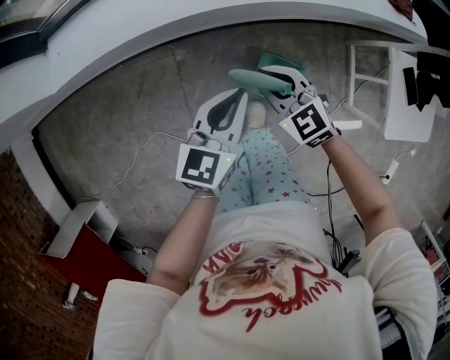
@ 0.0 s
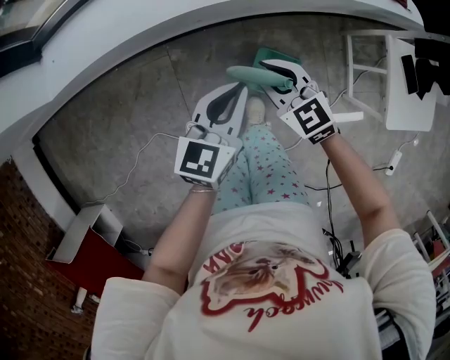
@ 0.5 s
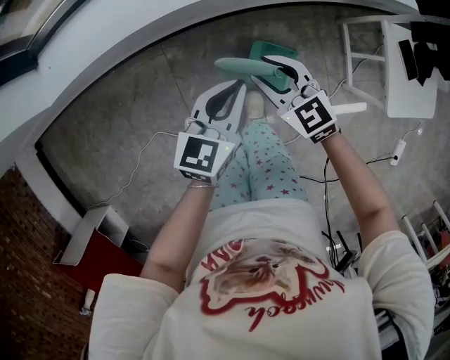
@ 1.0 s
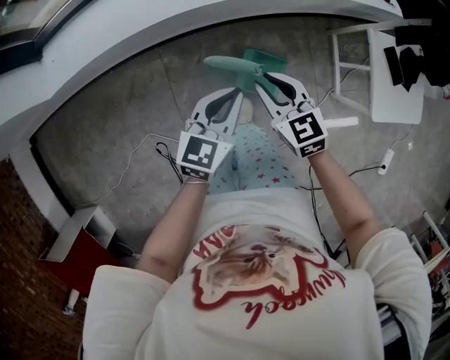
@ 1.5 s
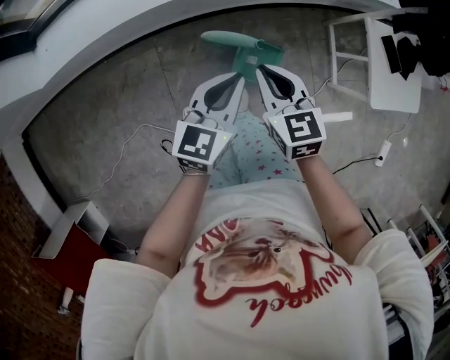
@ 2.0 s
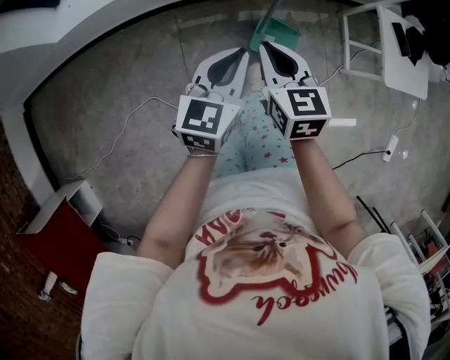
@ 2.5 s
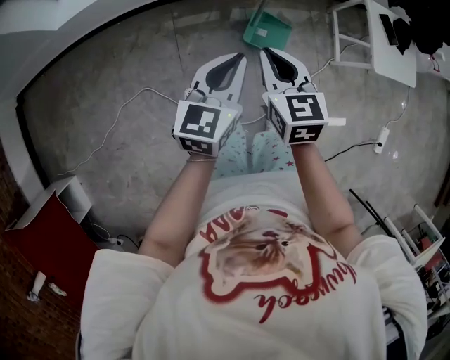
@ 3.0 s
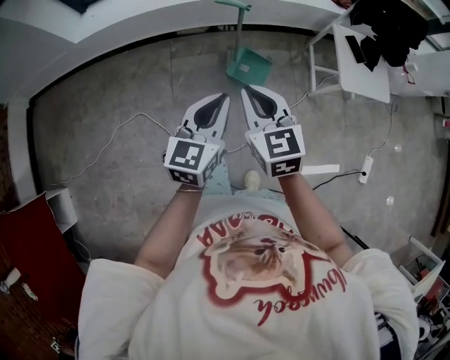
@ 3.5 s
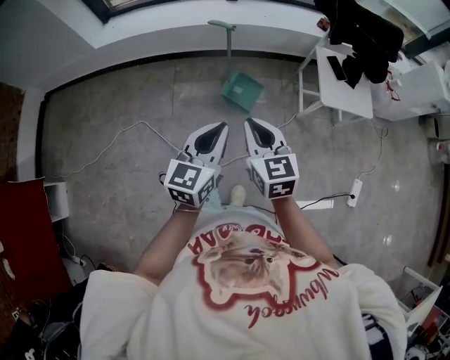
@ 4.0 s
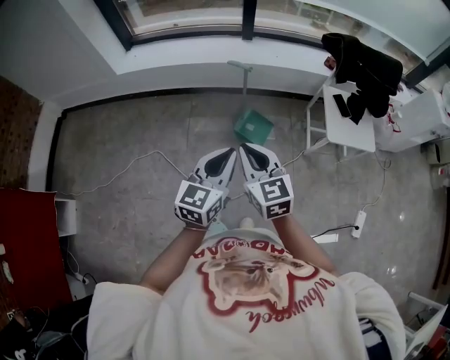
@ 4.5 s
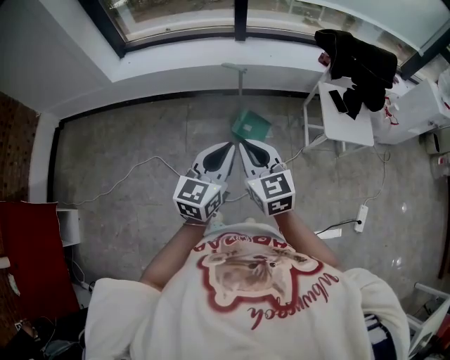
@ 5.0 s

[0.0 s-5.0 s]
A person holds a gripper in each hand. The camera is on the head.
0.0 to 2.5 s: The left gripper travels backward by about 20 cm; the right gripper goes approximately 20 cm backward and upward, and turns by about 40 degrees.
2.5 to 5.0 s: The two grippers go approximately 35 cm backward and upward. The right gripper turns by approximately 20 degrees.

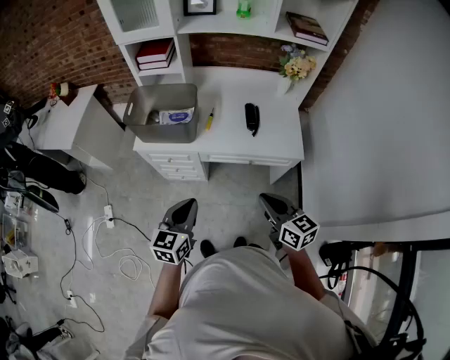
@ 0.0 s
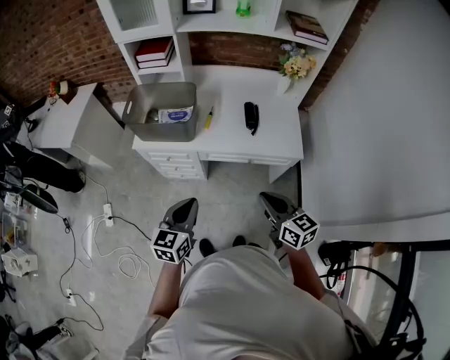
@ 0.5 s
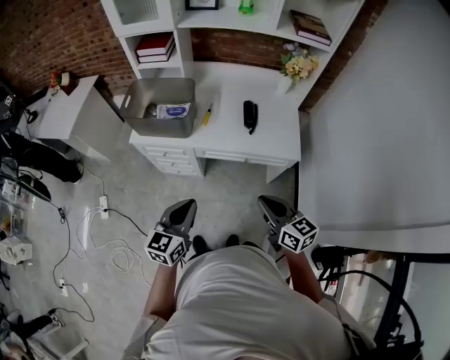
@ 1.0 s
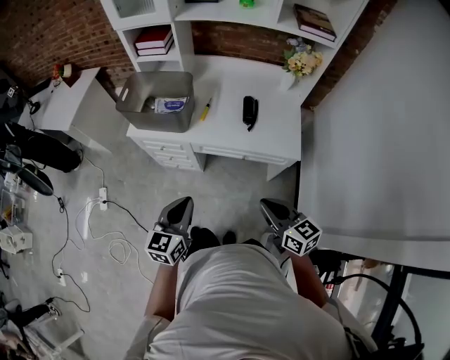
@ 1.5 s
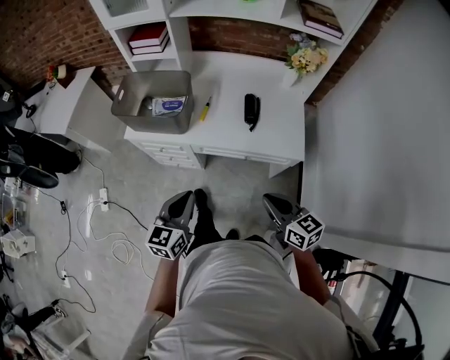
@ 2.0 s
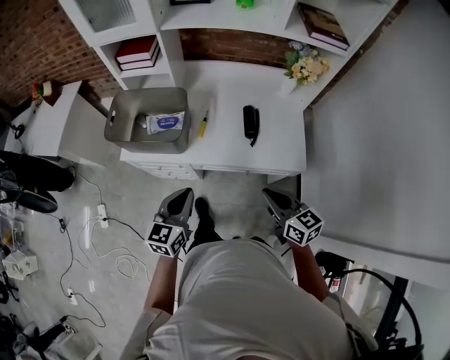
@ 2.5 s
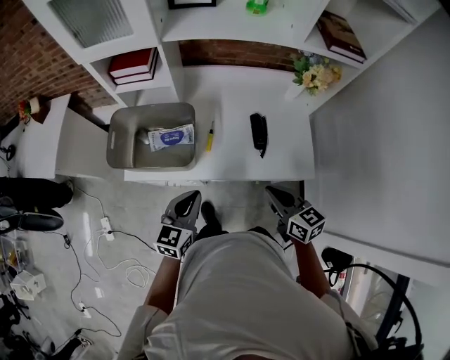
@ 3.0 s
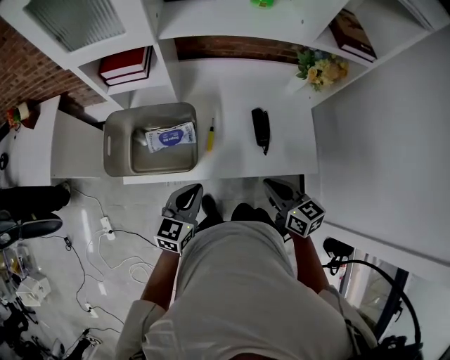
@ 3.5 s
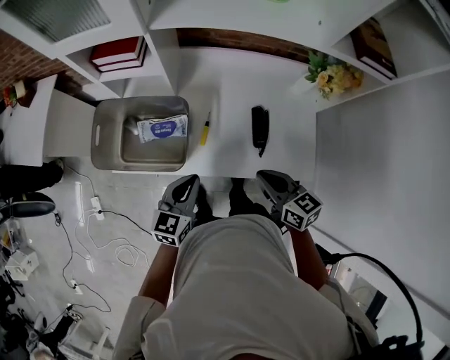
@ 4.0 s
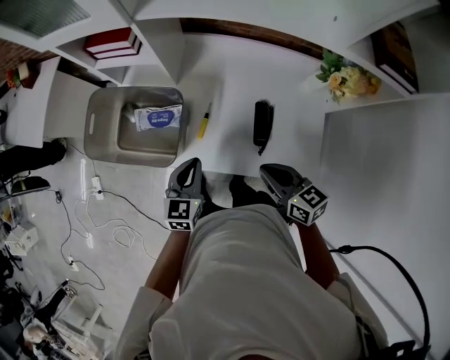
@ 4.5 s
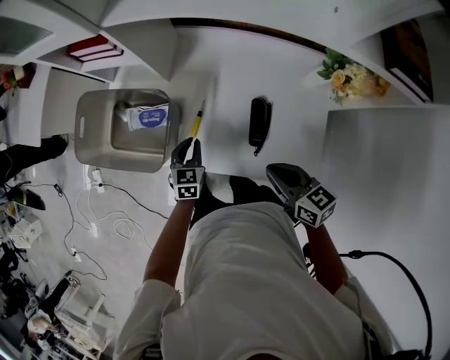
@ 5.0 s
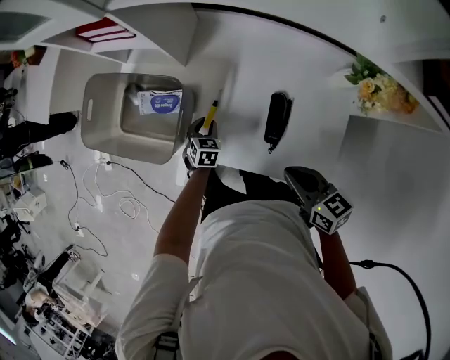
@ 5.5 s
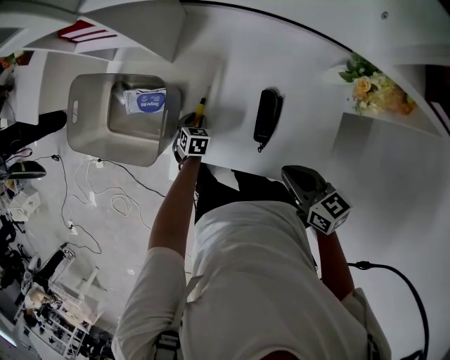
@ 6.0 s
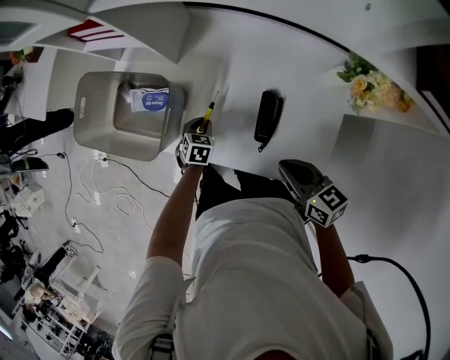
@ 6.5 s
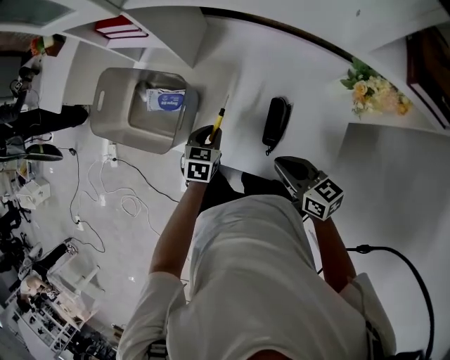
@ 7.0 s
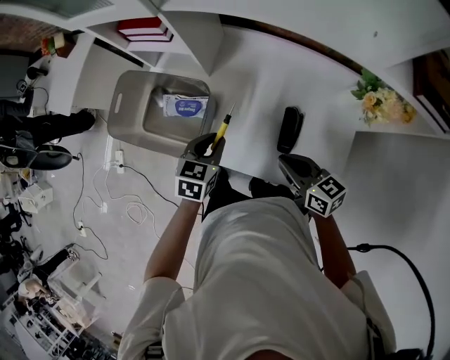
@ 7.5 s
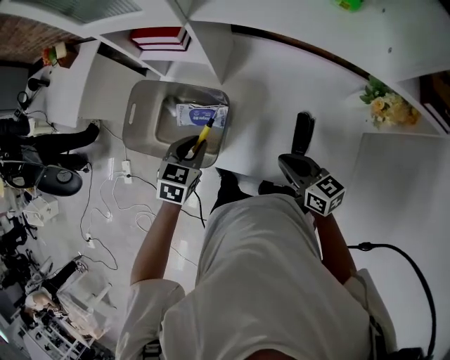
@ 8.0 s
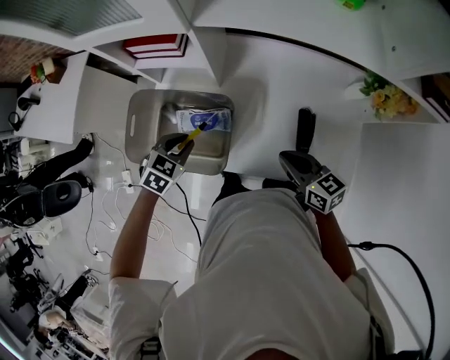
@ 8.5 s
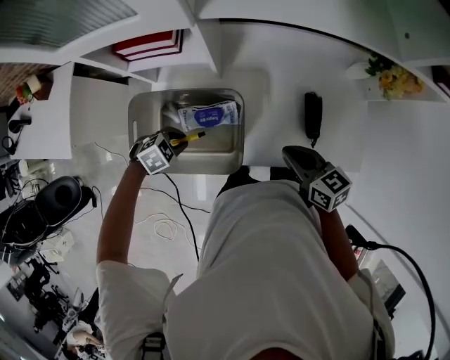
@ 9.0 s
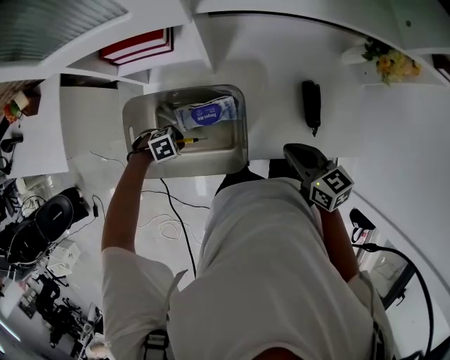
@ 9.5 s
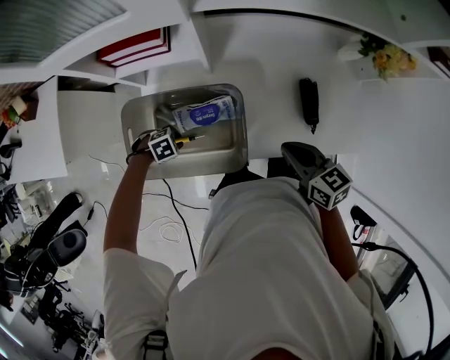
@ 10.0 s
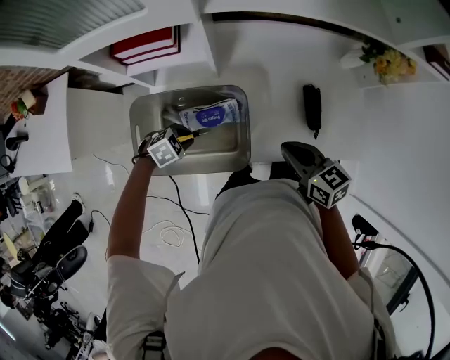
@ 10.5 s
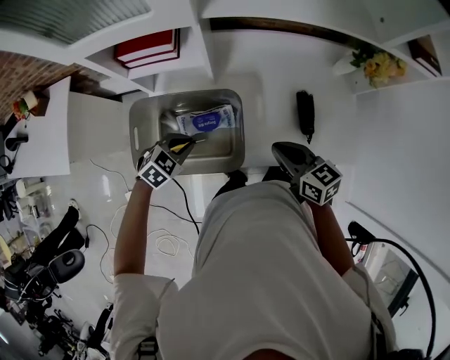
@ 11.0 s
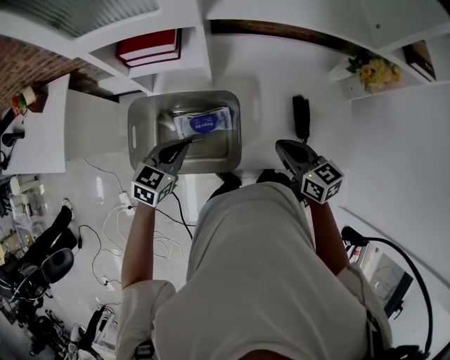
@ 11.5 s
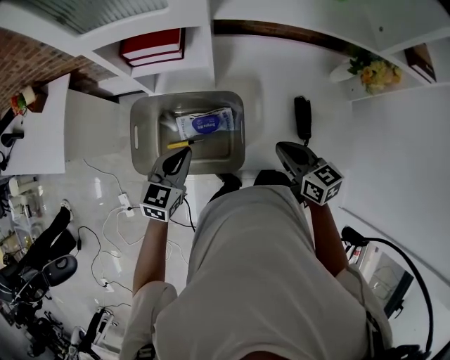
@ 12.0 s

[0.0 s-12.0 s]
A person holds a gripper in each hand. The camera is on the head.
0.0 to 2.0 s: Both grippers move to the right, some 5 cm.
2.0 to 4.0 s: The grippers both shift forward by about 30 cm.
4.0 to 6.0 s: The left gripper is displaced downward and forward by some 35 cm, tips its fingers downward by approximately 40 degrees, and opens. The right gripper goes some 15 cm to the right and downward.
6.0 to 8.0 s: The left gripper shifts about 30 cm upward and to the left, and rotates some 20 degrees, while the right gripper is displaced to the left and forward by approximately 15 cm.
8.0 to 10.0 s: The left gripper shifts roughly 25 cm downward, and rotates some 80 degrees. Meanwhile the right gripper moves about 10 cm, and changes its angle by some 20 degrees.
10.0 to 12.0 s: The left gripper is displaced upward by approximately 25 cm, and tilts its fingers roughly 40 degrees upward.

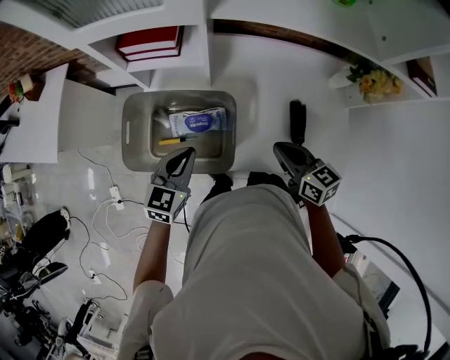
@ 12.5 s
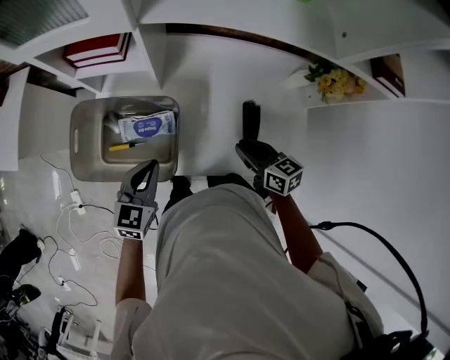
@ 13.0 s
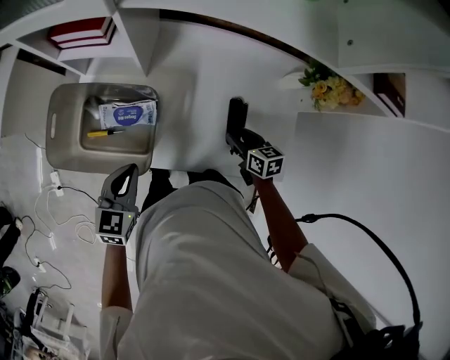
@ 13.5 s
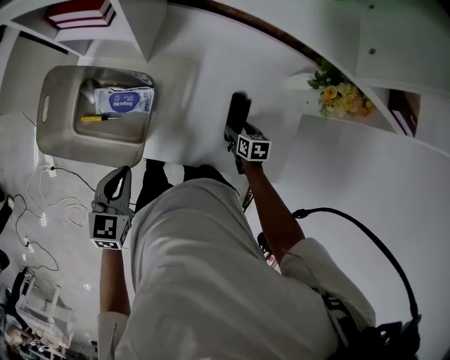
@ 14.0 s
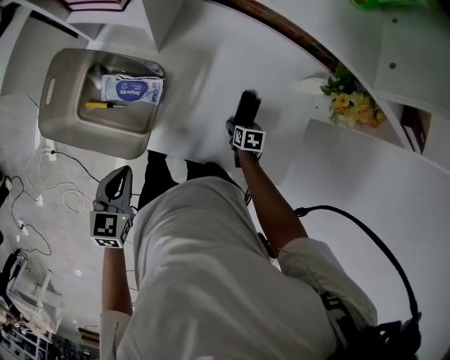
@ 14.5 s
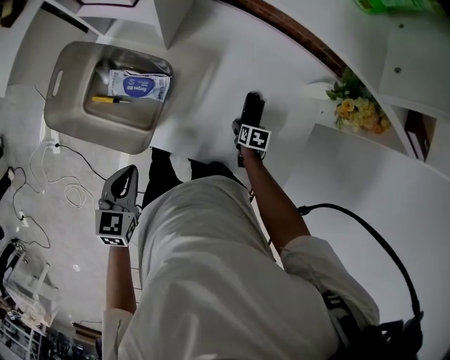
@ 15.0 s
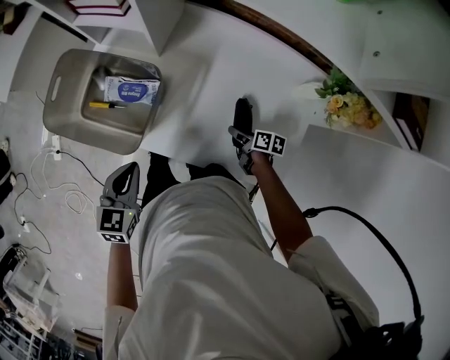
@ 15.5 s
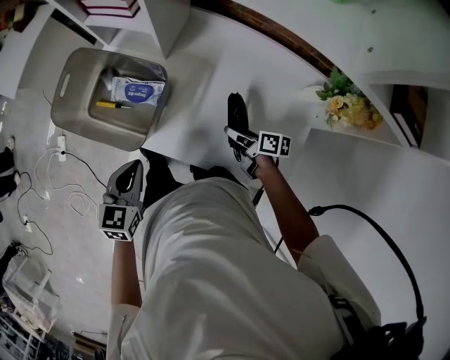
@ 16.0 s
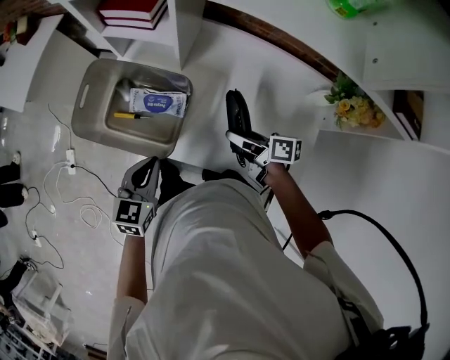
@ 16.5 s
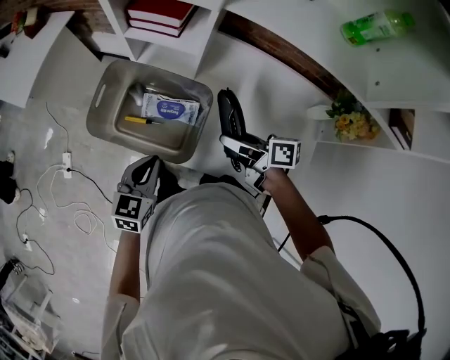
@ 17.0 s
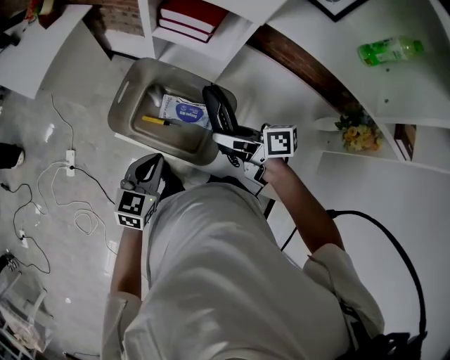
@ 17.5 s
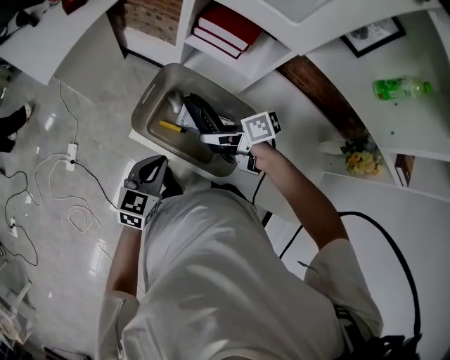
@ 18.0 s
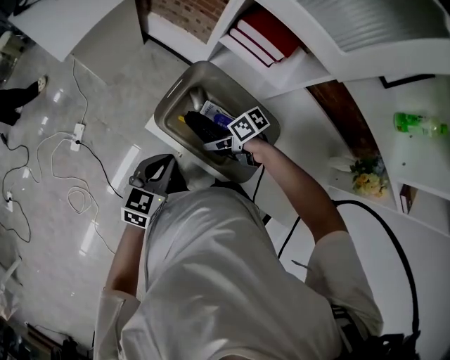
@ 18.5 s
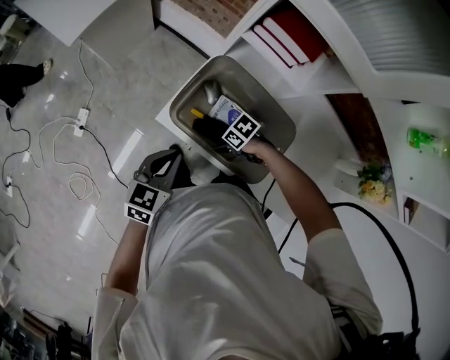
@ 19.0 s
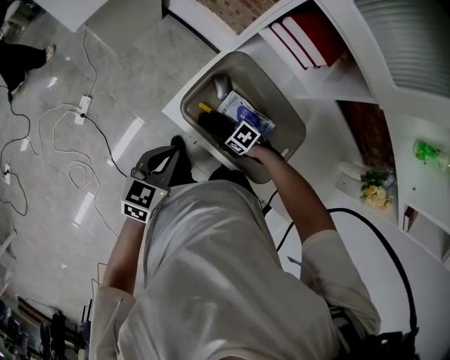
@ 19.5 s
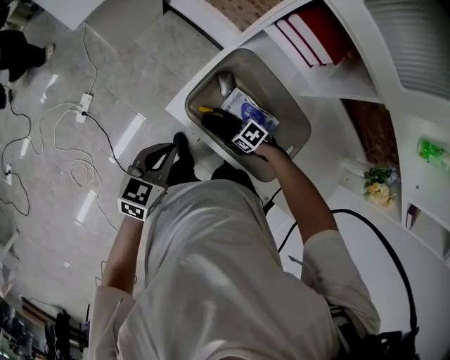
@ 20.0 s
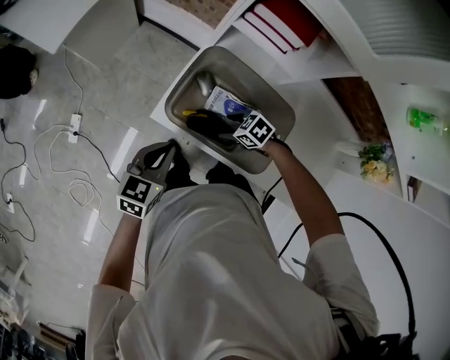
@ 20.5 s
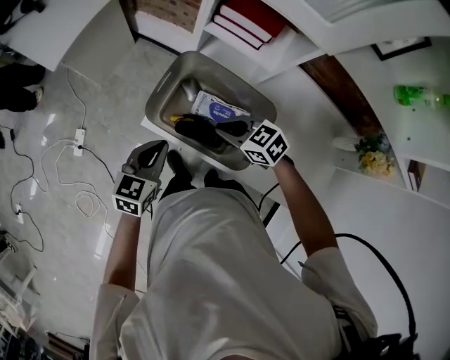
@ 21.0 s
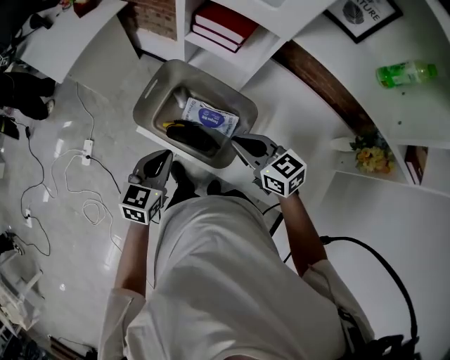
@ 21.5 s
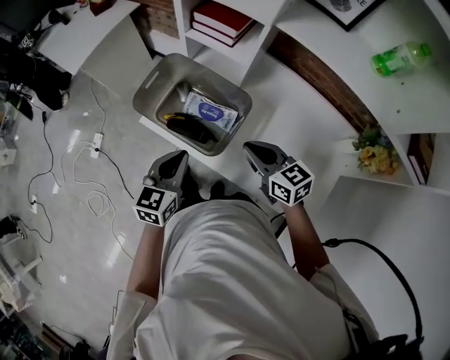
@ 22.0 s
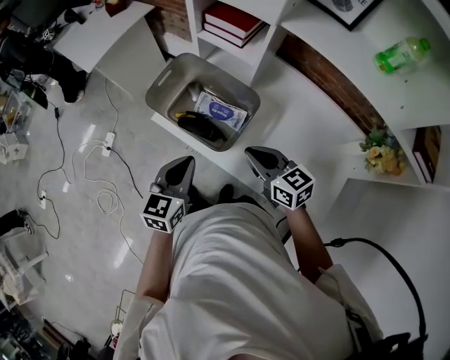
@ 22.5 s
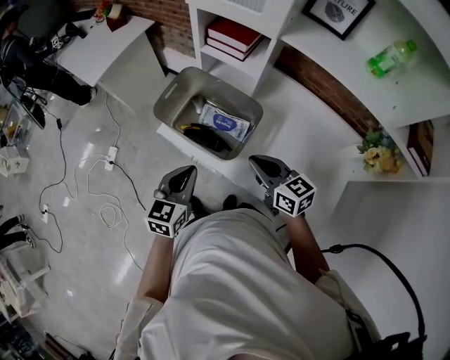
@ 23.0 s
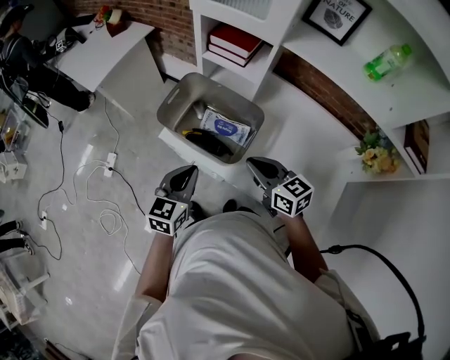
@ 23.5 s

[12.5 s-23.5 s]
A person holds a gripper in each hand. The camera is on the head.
12.5 to 14.5 s: The right gripper shifts approximately 35 cm downward and to the right, angles its fingers downward, by approximately 40 degrees, and opens. Meanwhile the left gripper heads backward, to the right and downward, covering about 15 cm, and swivels some 30 degrees.
14.5 to 16.0 s: The right gripper shifts some 15 cm upward and to the left, and angles its fingers upward, by roughly 40 degrees.
16.0 to 18.0 s: The right gripper is displaced to the left, forward and upward by approximately 40 cm, and changes its angle by roughly 40 degrees. Meanwhile the left gripper is displaced to the left and forward by roughly 20 cm.
18.0 to 20.0 s: The right gripper moves downward, about 25 cm, and points its fingers about 40 degrees further downward. Meanwhile the left gripper changes place by about 10 cm.
20.0 to 21.5 s: The right gripper shifts some 30 cm upward, angles its fingers upward, by roughly 40 degrees, and closes up. Meanwhile the left gripper moves approximately 15 cm.
21.5 to 23.5 s: Both grippers move backward, roughly 10 cm.
